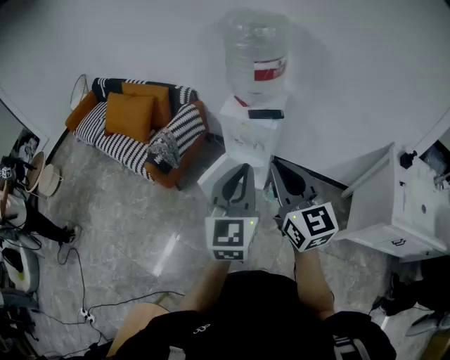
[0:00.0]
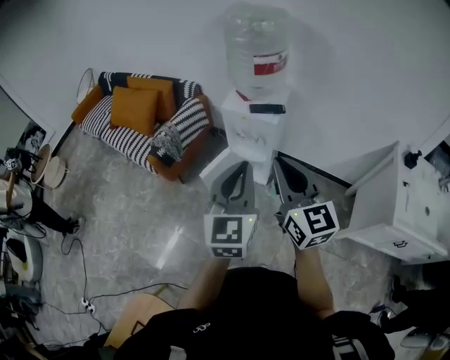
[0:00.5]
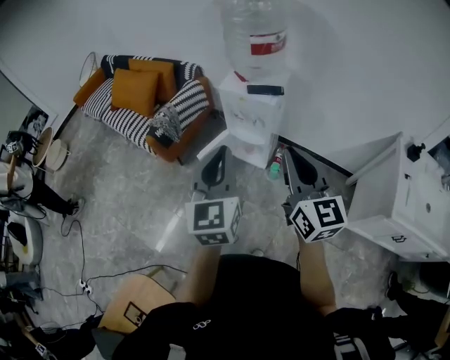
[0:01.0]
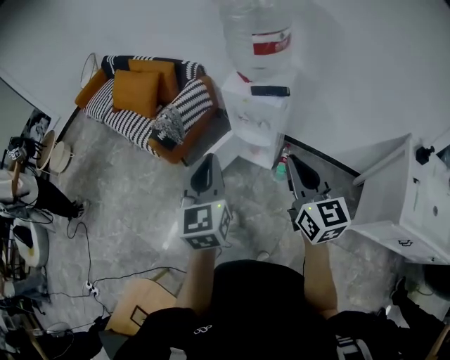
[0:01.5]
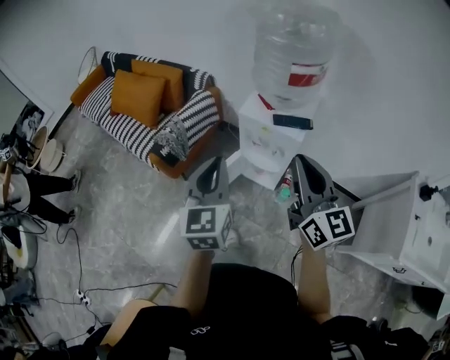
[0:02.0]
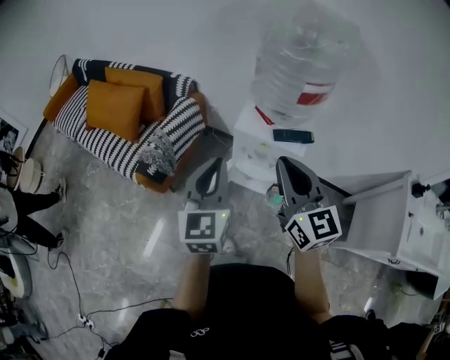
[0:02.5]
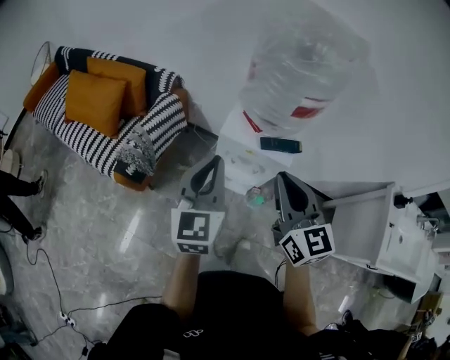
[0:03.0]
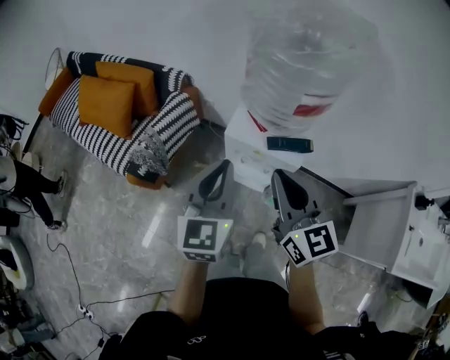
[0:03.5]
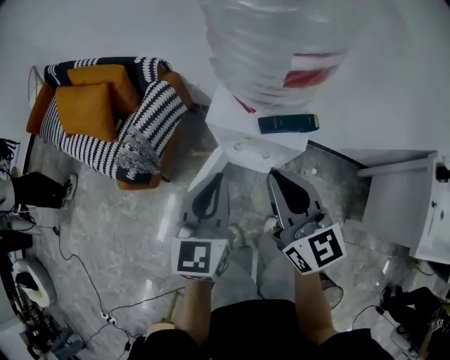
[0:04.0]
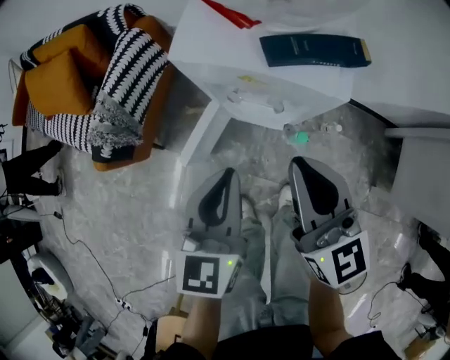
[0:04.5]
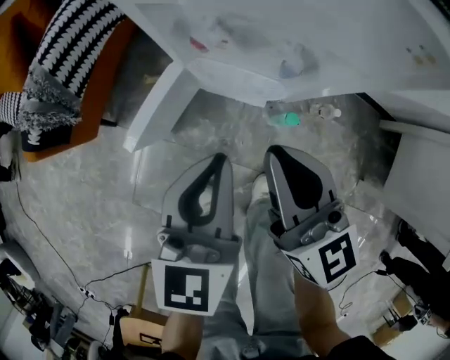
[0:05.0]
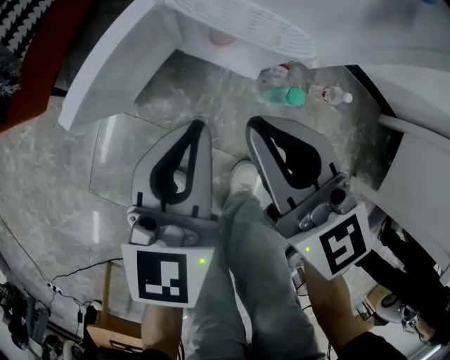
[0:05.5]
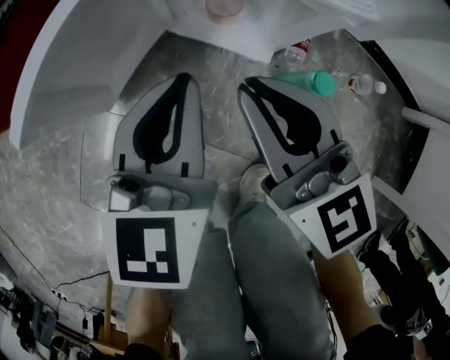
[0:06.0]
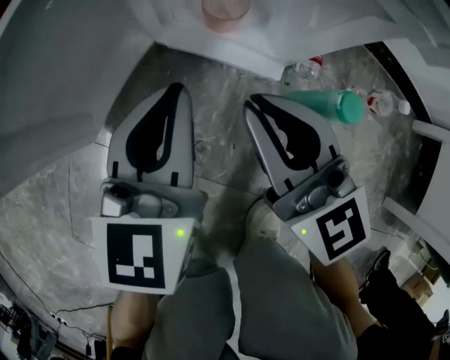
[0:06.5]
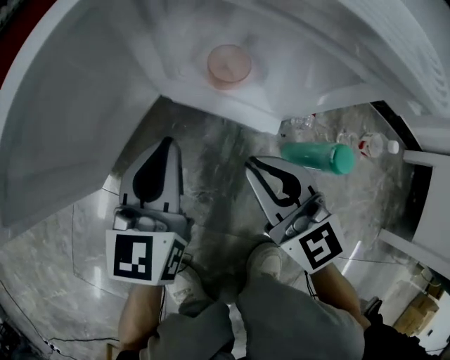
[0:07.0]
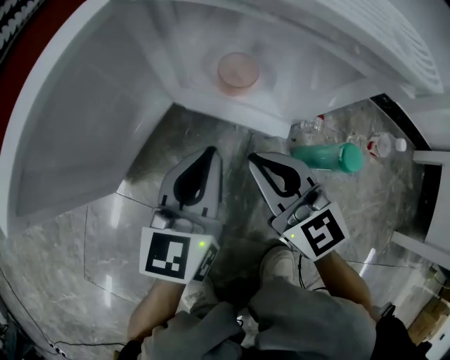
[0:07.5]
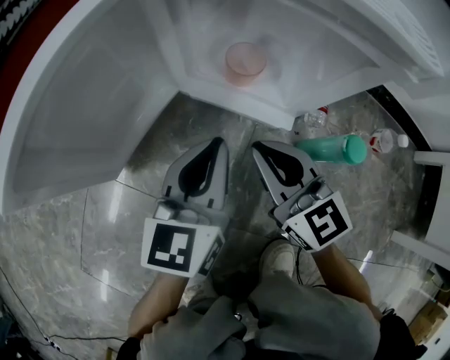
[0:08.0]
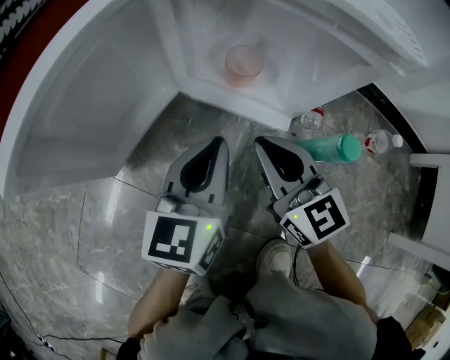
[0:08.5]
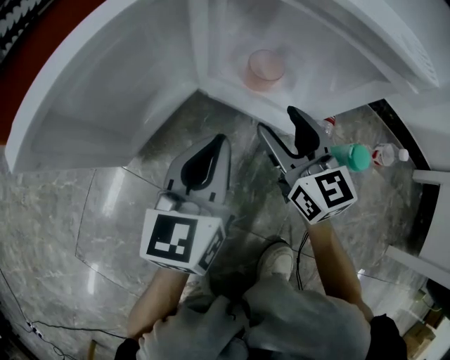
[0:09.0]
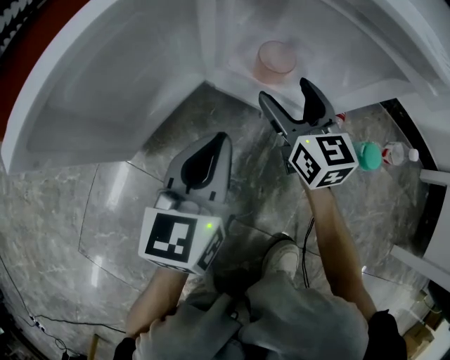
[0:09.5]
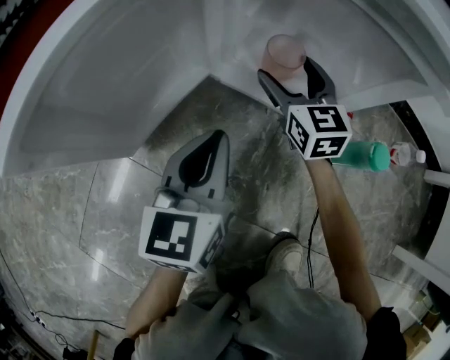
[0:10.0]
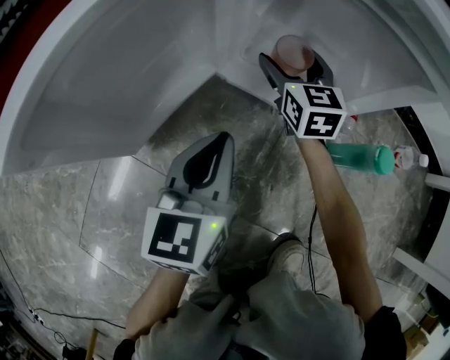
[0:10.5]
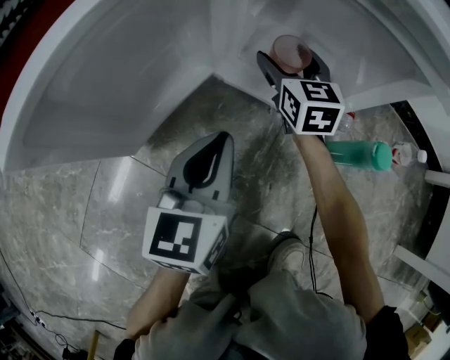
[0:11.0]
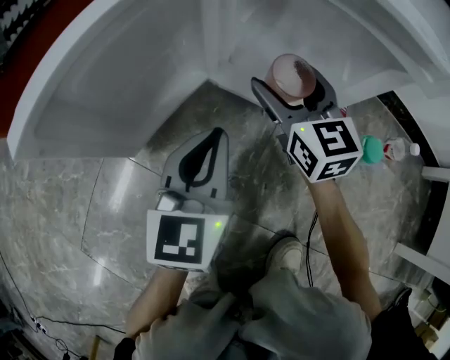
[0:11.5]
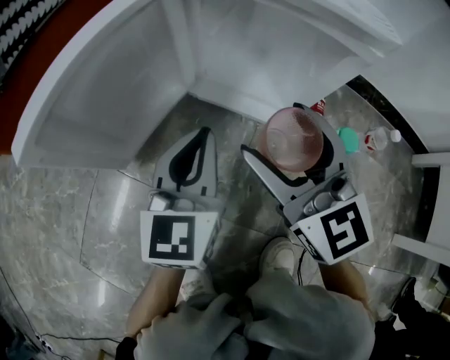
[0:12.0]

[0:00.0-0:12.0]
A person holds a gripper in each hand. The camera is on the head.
0:00.0 to 0:02.0: The right gripper travels forward by about 15 cm. Meanwhile the left gripper shifts some 20 cm forward and to the left.
0:02.0 to 0:04.0: The grippers both shift forward and downward by about 20 cm.
0:04.0 to 0:06.0: The two grippers go some 60 cm downward. The right gripper rotates approximately 20 degrees.
0:06.0 to 0:08.0: The grippers both shift downward by approximately 15 cm.
0:08.0 to 0:10.0: The right gripper heads forward, covering some 15 cm, and opens its fingers, while the left gripper moves to the left, approximately 5 cm.
0:10.0 to 0:12.0: The right gripper moves backward and upward, about 25 cm. The left gripper moves upward, some 5 cm.

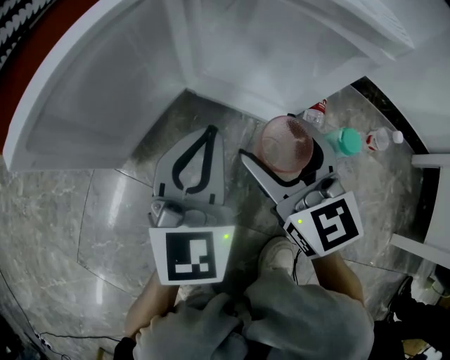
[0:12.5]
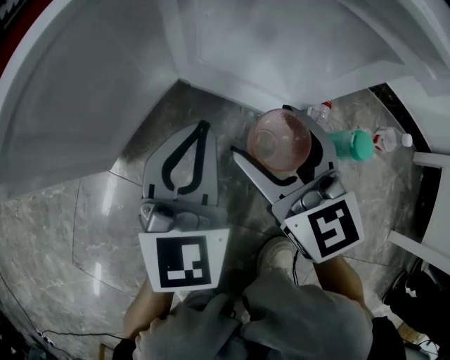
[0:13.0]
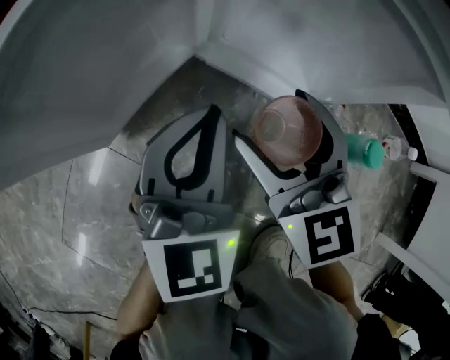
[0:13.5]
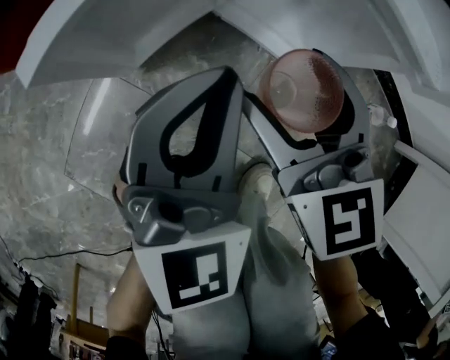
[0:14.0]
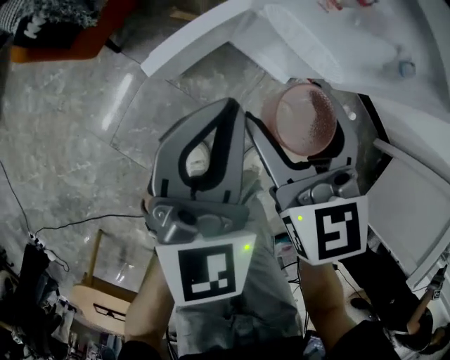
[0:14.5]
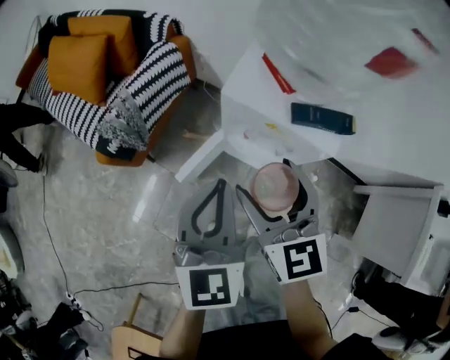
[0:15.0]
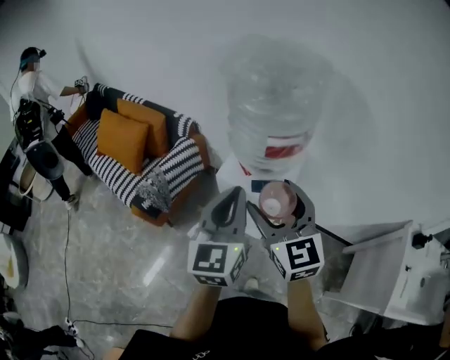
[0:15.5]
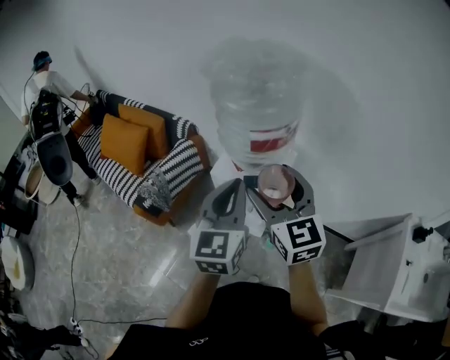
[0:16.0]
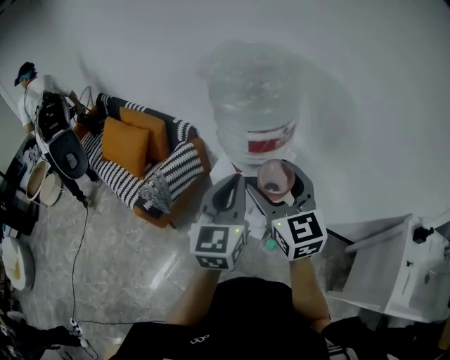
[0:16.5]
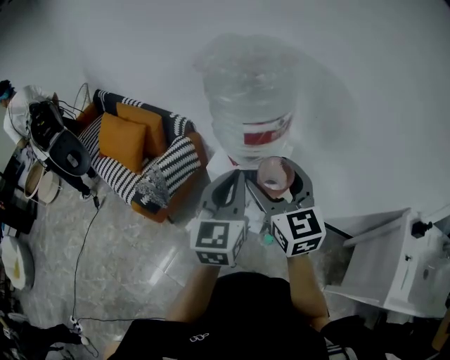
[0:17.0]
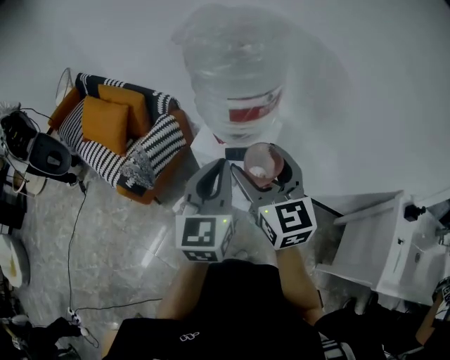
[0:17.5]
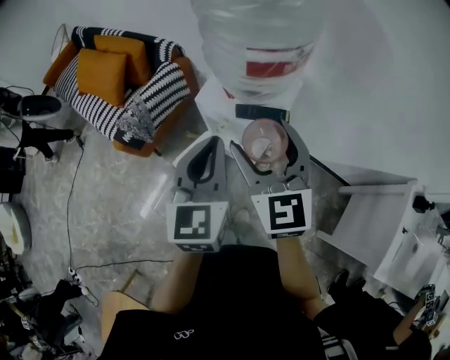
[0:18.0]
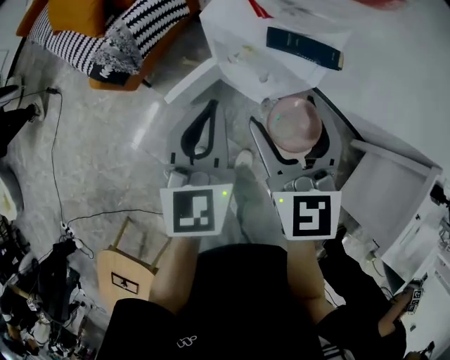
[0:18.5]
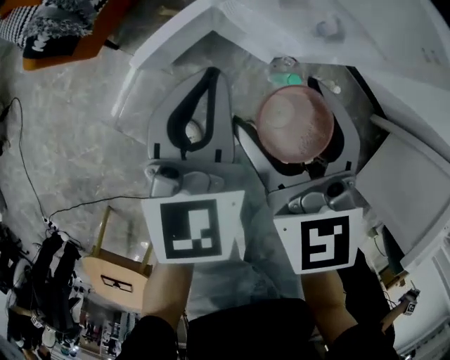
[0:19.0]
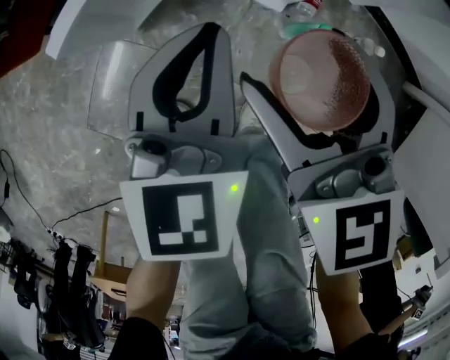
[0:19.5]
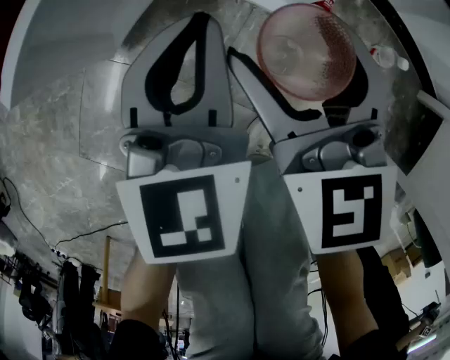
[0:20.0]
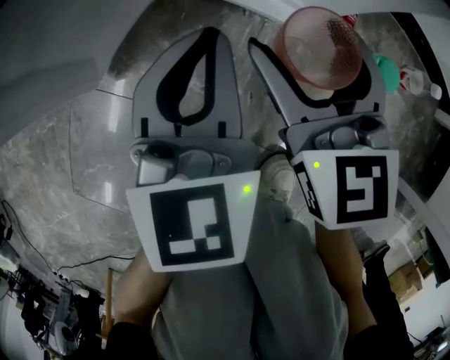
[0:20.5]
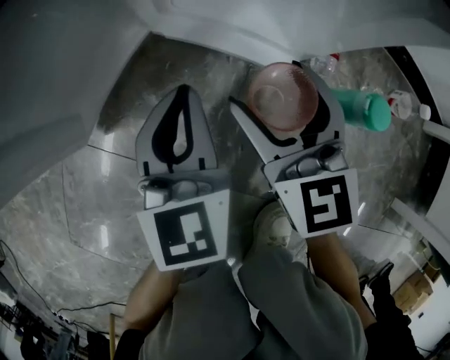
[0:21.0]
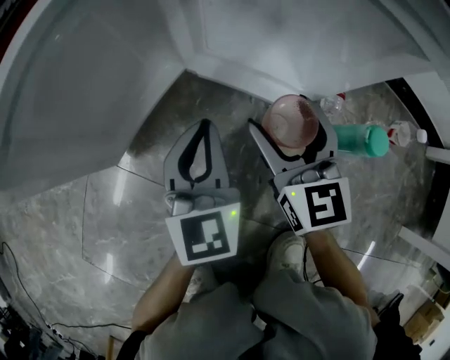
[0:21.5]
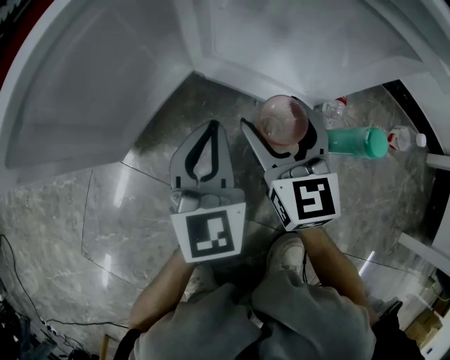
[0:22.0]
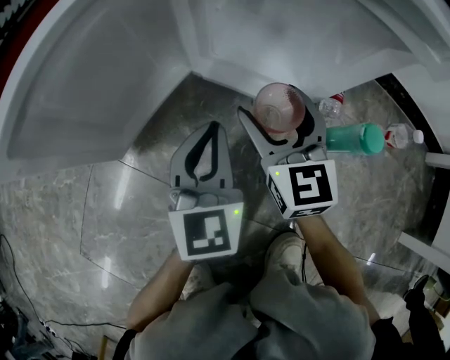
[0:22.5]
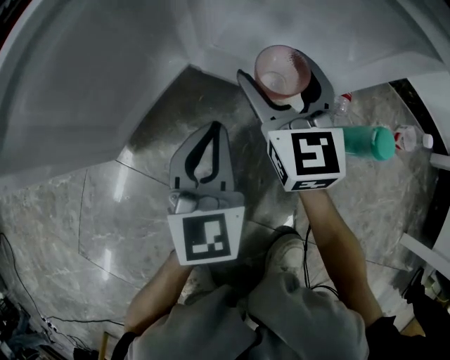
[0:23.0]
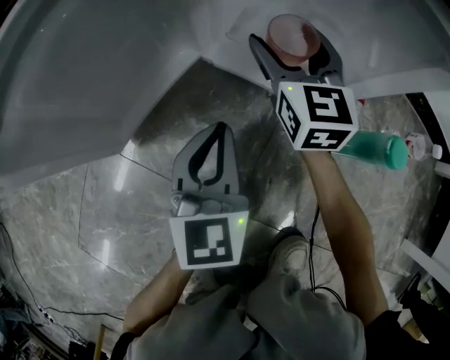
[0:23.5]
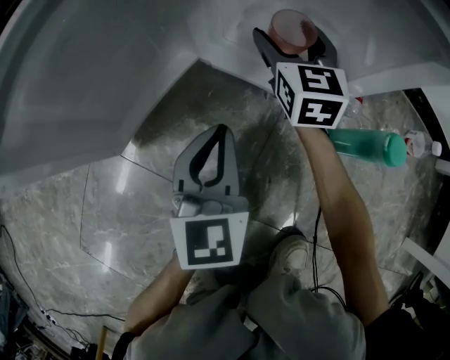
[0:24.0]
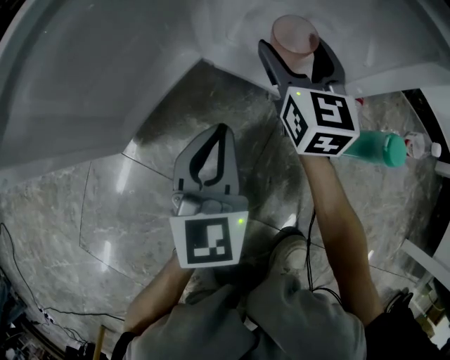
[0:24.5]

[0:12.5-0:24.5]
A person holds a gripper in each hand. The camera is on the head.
0:12.5 to 0:14.5: The grippers both shift upward by roughly 35 cm.
0:14.5 to 0:16.5: Both grippers move upward, approximately 60 cm. The left gripper turns by about 20 degrees; the right gripper swivels roughly 30 degrees.
0:16.5 to 0:18.5: The grippers both shift downward by roughly 25 cm. The left gripper changes its angle by some 20 degrees.
0:18.5 to 0:20.5: Both grippers travel together downward, roughly 70 cm.
0:20.5 to 0:22.5: Both grippers travel together downward, about 5 cm.
0:22.5 to 0:24.5: The right gripper is displaced forward by some 10 cm.

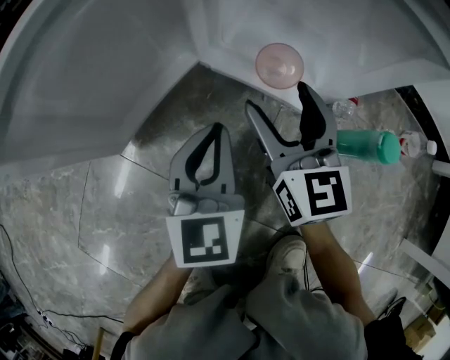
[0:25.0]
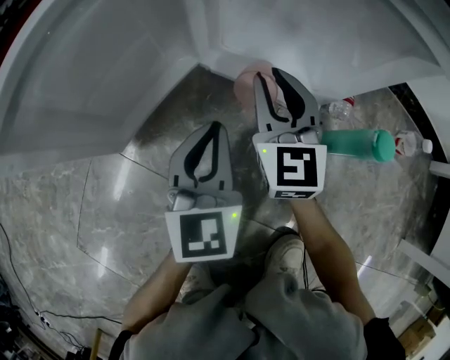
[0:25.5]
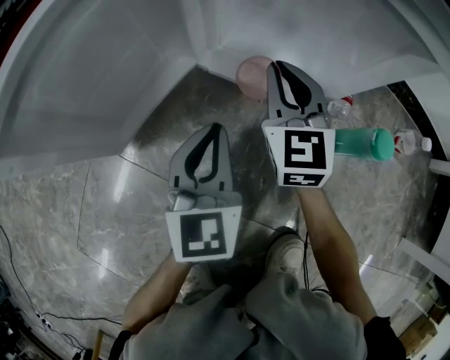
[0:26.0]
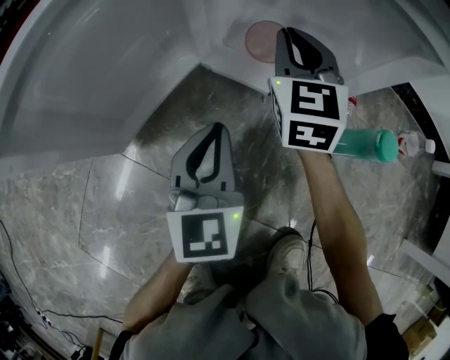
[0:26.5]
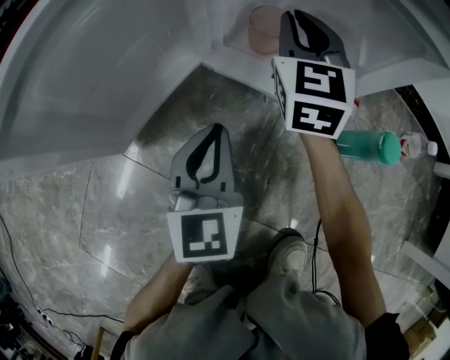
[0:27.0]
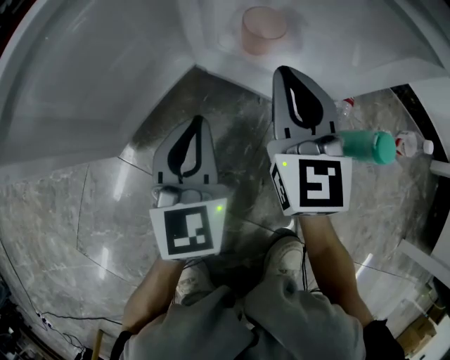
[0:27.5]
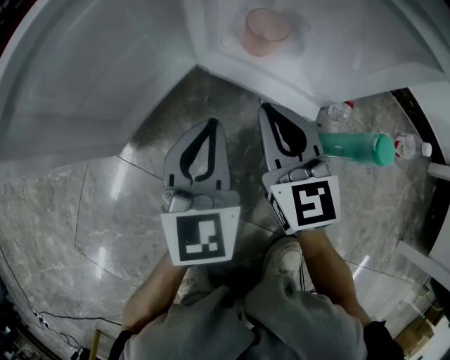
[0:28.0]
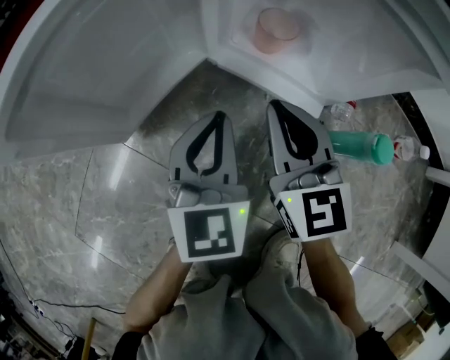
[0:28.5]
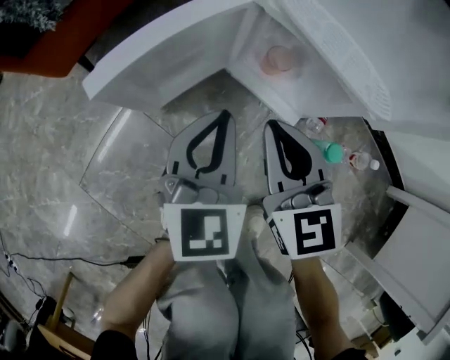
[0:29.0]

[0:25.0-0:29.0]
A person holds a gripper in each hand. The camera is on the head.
0:25.0 to 0:27.0: The right gripper moves forward, some 15 cm, turns by roughly 20 degrees, and closes its fingers.
0:27.0 to 0:29.0: The right gripper goes roughly 25 cm backward, upward and to the left, and rotates approximately 30 degrees. Meanwhile the left gripper is displaced upward by some 20 cm.
